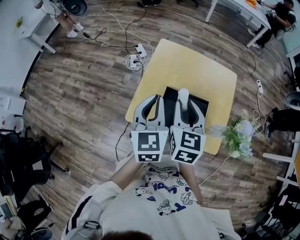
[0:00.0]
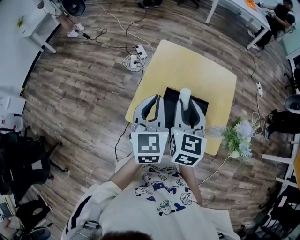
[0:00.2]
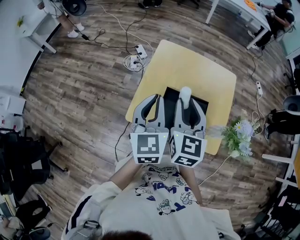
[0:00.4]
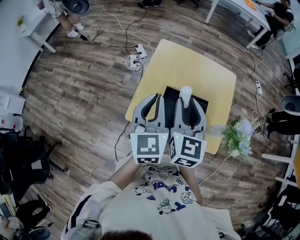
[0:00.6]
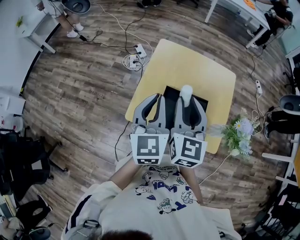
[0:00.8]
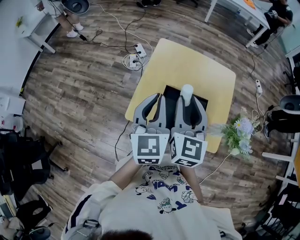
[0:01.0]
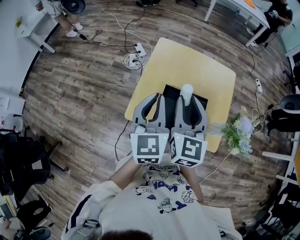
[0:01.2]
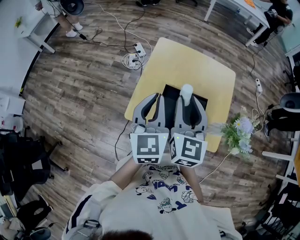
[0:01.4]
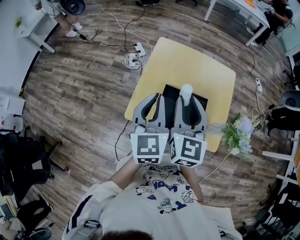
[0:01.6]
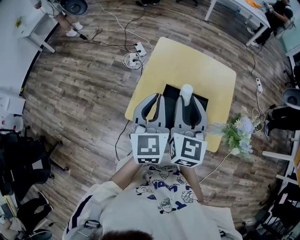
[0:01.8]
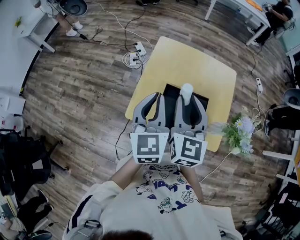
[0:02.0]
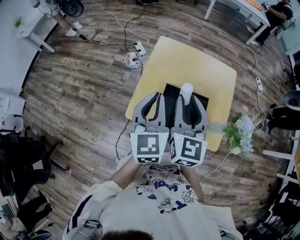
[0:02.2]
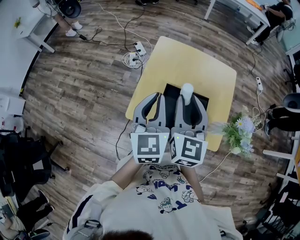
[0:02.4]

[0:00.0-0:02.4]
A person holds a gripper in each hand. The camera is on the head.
0:00.0 to 0:01.2: The grippers move only a little.
0:01.2 to 0:02.4: Both grippers stay about where they are.

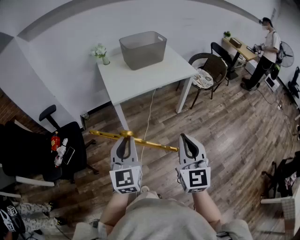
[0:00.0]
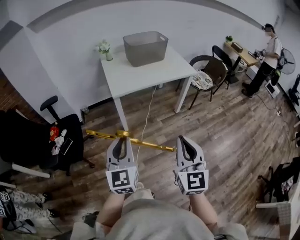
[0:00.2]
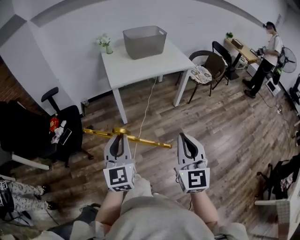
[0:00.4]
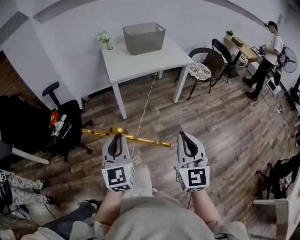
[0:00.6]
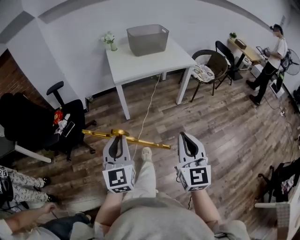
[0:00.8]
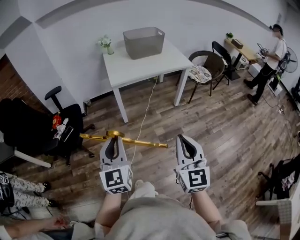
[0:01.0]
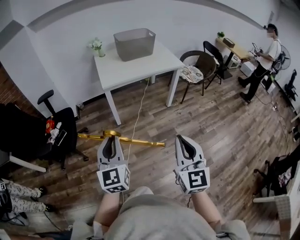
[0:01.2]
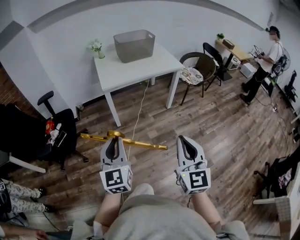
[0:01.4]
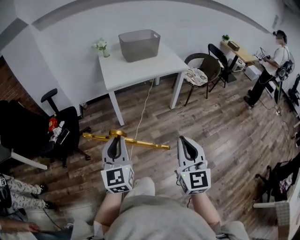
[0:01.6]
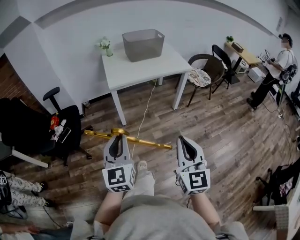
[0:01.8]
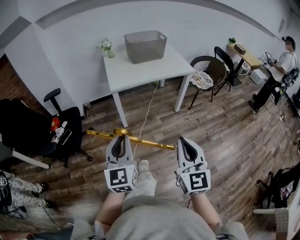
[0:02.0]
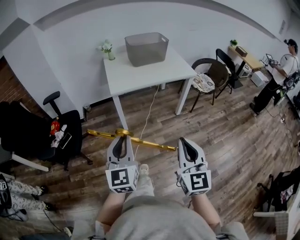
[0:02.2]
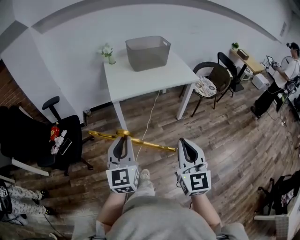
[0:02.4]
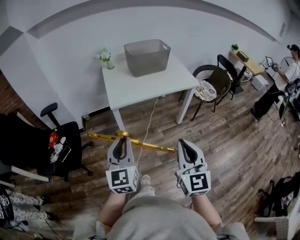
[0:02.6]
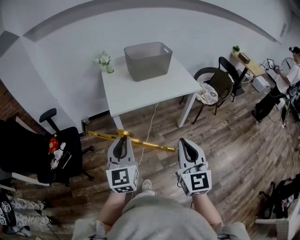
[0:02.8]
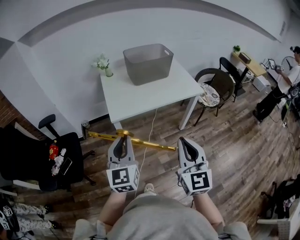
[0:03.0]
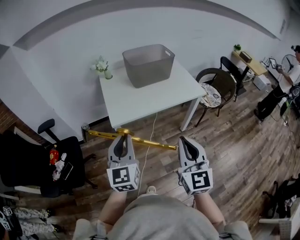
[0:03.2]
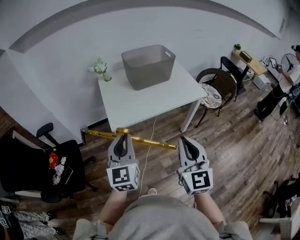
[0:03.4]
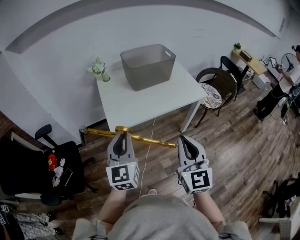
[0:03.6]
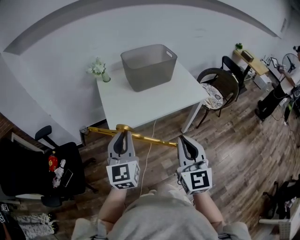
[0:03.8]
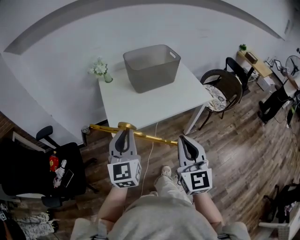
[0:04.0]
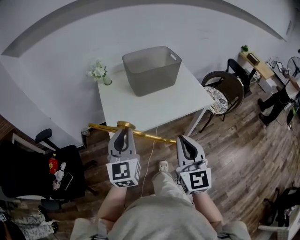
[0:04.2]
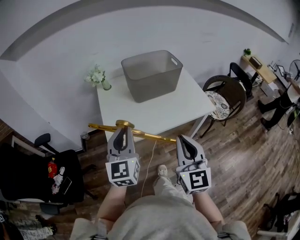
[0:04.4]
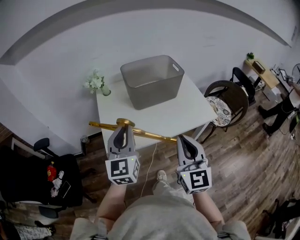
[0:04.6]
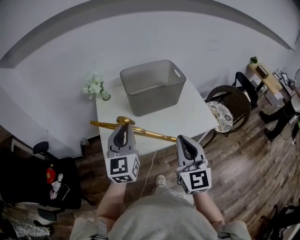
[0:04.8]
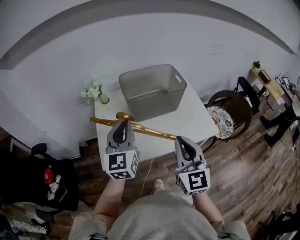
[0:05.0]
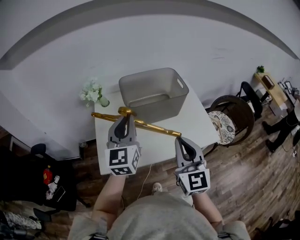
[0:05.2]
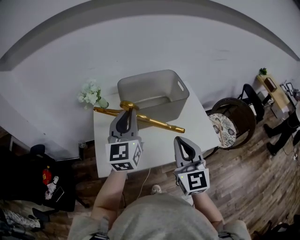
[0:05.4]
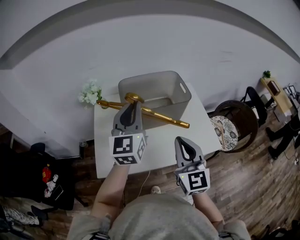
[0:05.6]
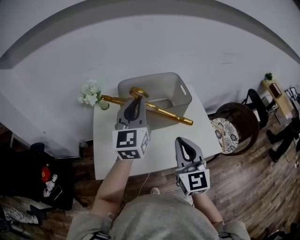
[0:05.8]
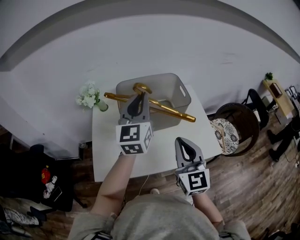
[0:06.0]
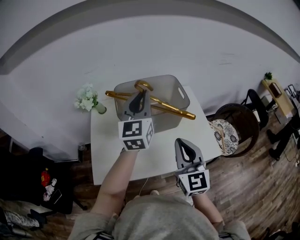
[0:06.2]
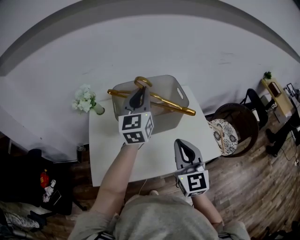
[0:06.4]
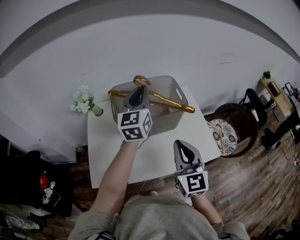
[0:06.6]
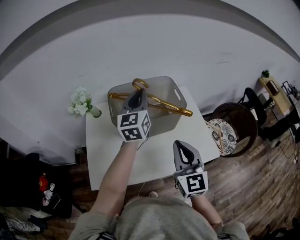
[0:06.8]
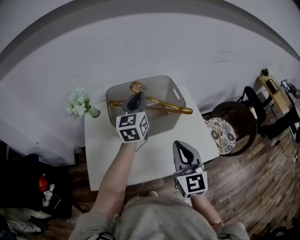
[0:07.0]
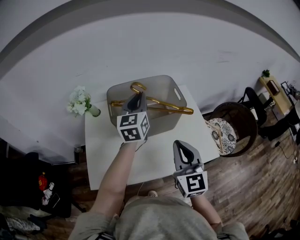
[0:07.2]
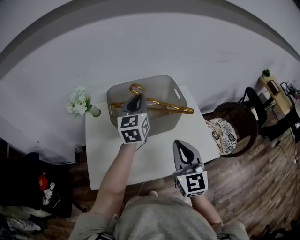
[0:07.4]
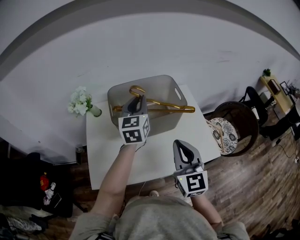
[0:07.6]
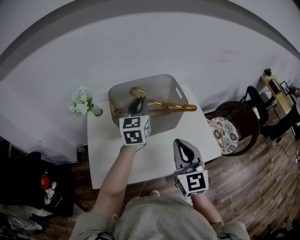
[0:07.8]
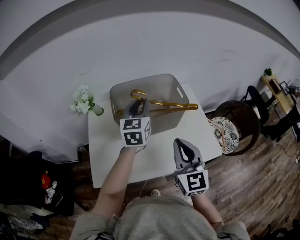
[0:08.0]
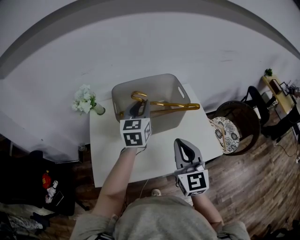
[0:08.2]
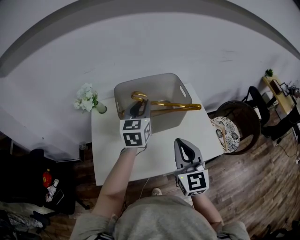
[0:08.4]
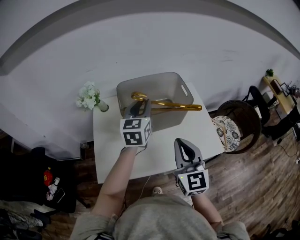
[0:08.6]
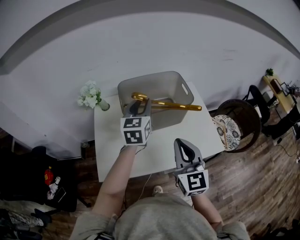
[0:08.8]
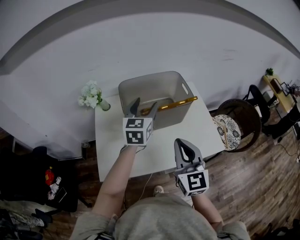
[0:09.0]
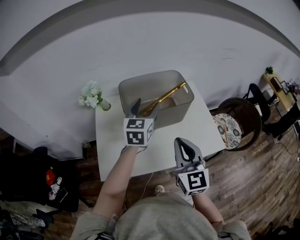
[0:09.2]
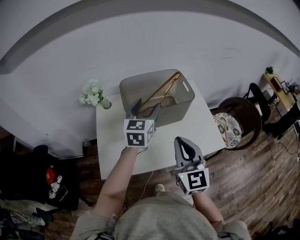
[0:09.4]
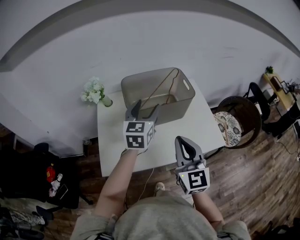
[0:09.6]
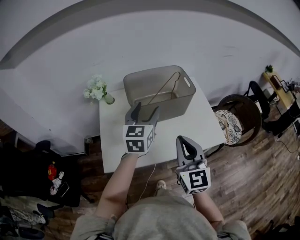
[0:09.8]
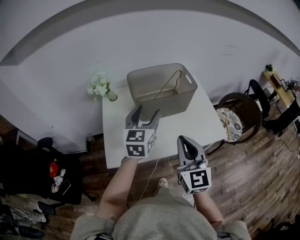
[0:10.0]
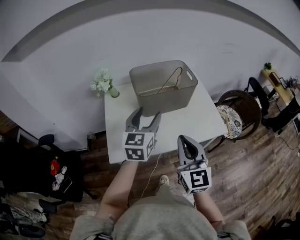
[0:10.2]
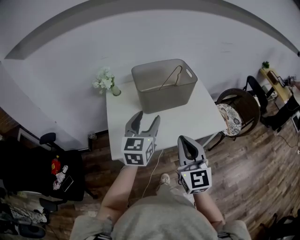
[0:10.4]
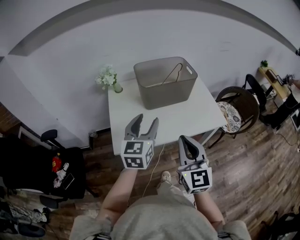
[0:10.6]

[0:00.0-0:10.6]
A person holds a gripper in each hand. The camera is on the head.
0:00.0 to 0:01.6: The left gripper moves backward, roughly 15 cm. The right gripper moves backward and to the right, about 20 cm.
0:01.6 to 0:03.0: Both grippers travel together forward, roughly 30 cm.
0:03.0 to 0:04.6: Both grippers move forward, approximately 30 cm.
0:04.6 to 0:06.0: The right gripper goes roughly 20 cm forward; the left gripper goes roughly 30 cm forward and to the right.
0:06.0 to 0:07.6: The left gripper heads forward and downward, covering some 10 cm.
0:07.6 to 0:09.0: The right gripper shifts by roughly 5 cm. Meanwhile the left gripper is displaced backward by roughly 5 cm, and opens up.
0:09.0 to 0:10.6: Both grippers move backward, roughly 20 cm.

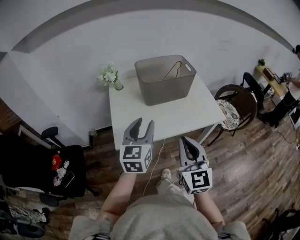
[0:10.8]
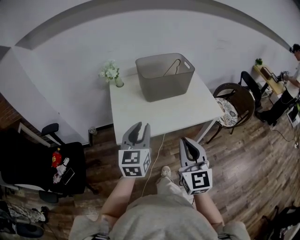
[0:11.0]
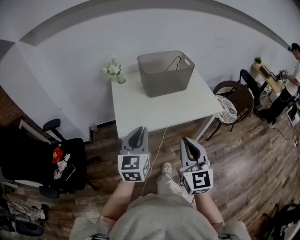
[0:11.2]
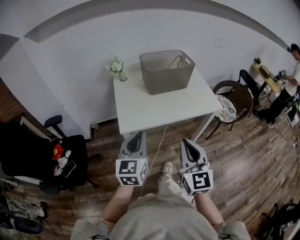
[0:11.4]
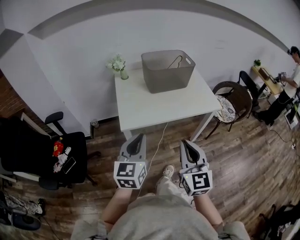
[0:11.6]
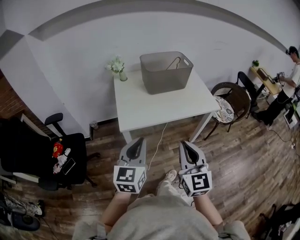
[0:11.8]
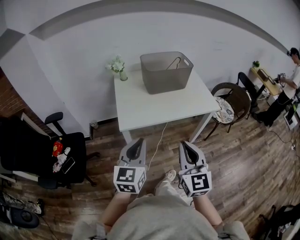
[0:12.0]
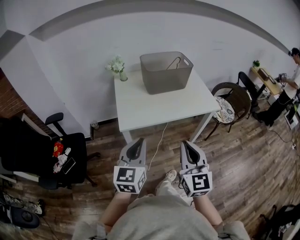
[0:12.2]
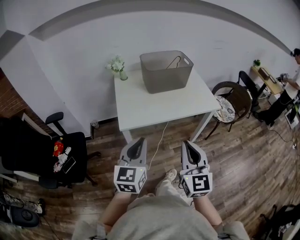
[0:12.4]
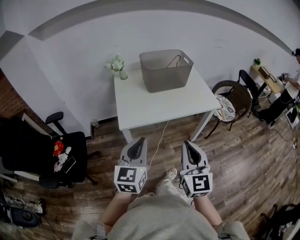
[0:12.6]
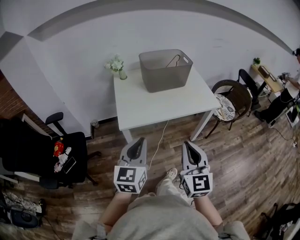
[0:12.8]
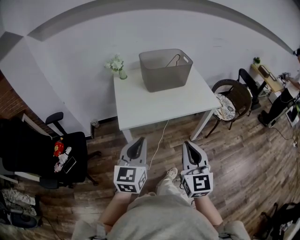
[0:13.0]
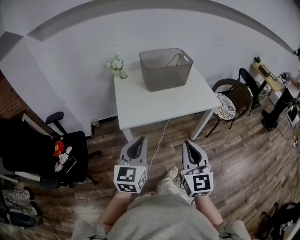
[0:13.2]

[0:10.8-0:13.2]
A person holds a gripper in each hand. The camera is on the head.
0:10.8 to 0:12.0: The two grippers go approximately 20 cm backward. The left gripper closes its fingers.
0:12.0 to 0:13.2: The grippers make only small movements.

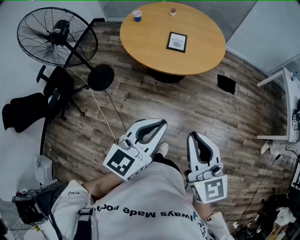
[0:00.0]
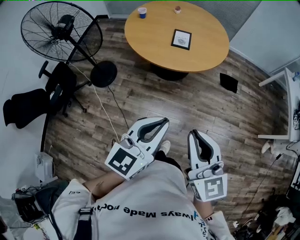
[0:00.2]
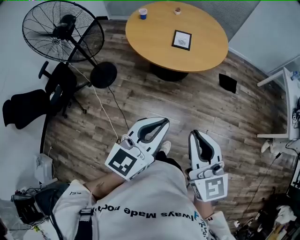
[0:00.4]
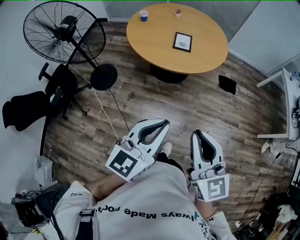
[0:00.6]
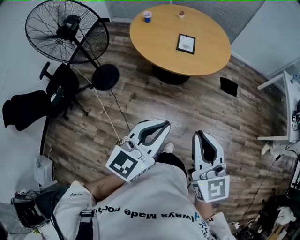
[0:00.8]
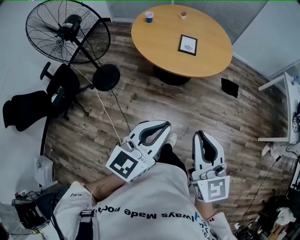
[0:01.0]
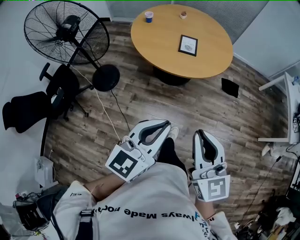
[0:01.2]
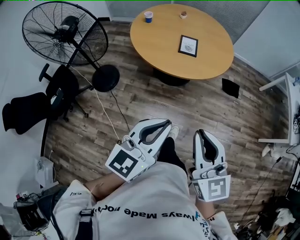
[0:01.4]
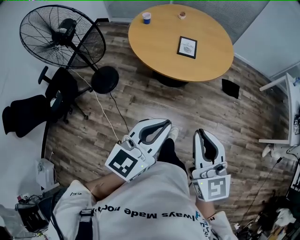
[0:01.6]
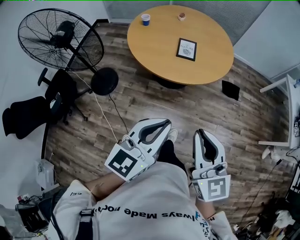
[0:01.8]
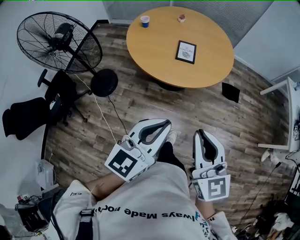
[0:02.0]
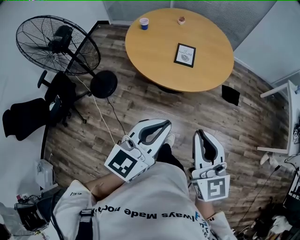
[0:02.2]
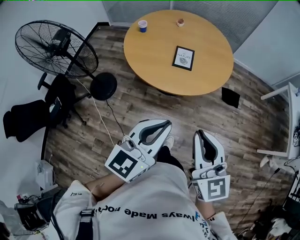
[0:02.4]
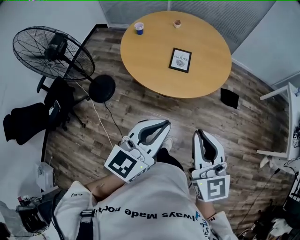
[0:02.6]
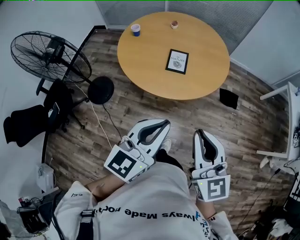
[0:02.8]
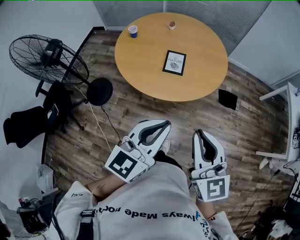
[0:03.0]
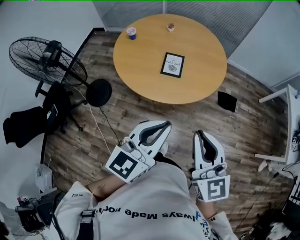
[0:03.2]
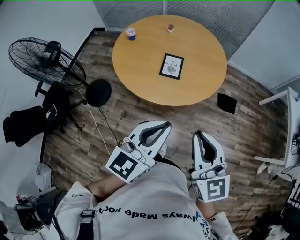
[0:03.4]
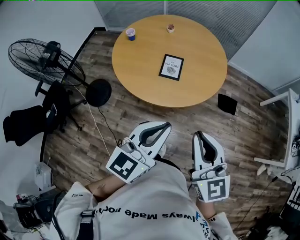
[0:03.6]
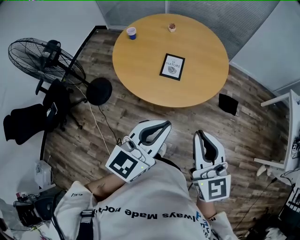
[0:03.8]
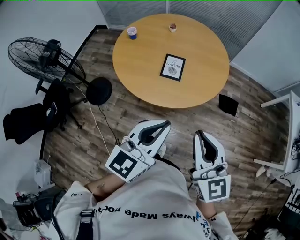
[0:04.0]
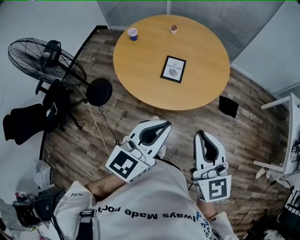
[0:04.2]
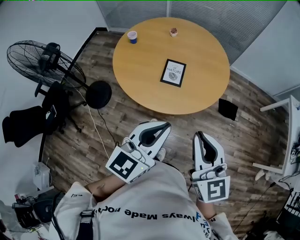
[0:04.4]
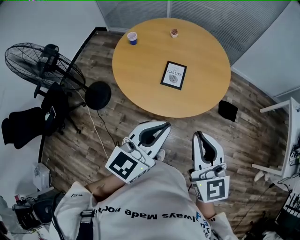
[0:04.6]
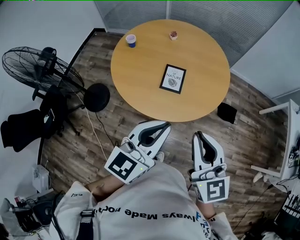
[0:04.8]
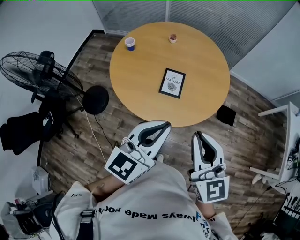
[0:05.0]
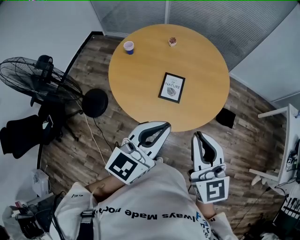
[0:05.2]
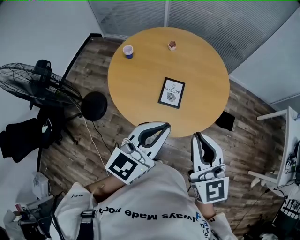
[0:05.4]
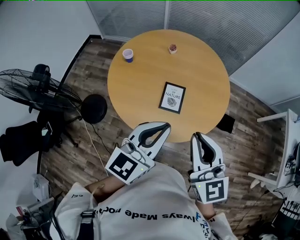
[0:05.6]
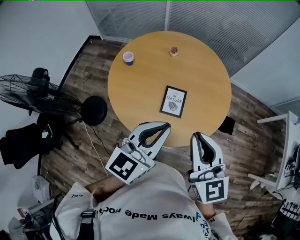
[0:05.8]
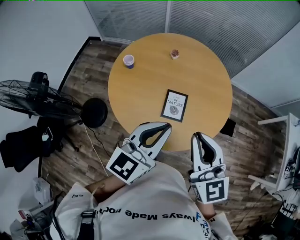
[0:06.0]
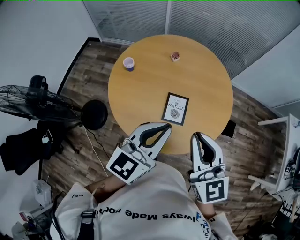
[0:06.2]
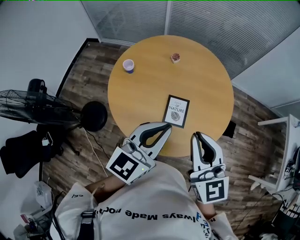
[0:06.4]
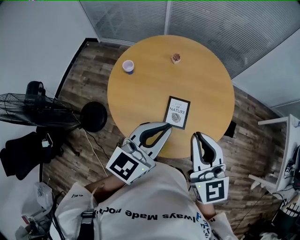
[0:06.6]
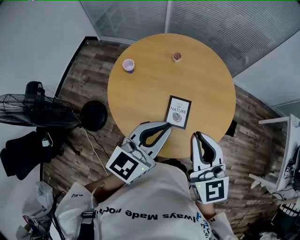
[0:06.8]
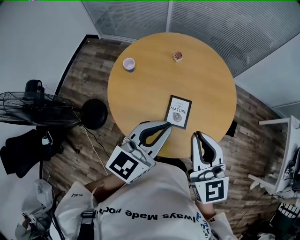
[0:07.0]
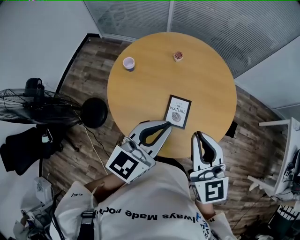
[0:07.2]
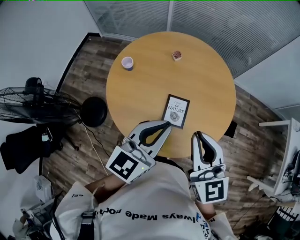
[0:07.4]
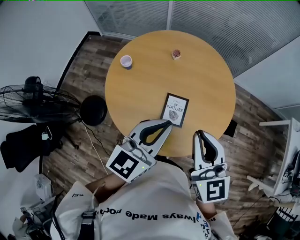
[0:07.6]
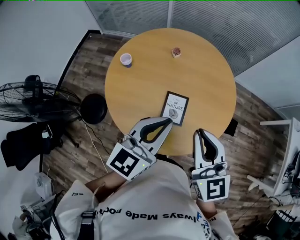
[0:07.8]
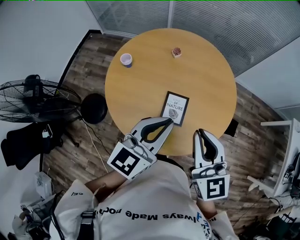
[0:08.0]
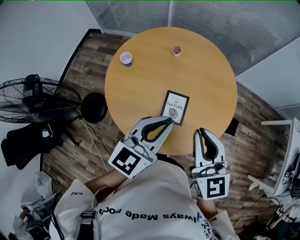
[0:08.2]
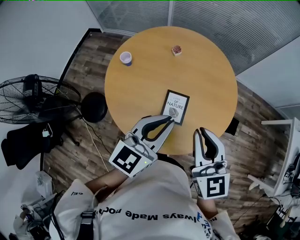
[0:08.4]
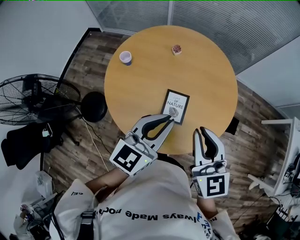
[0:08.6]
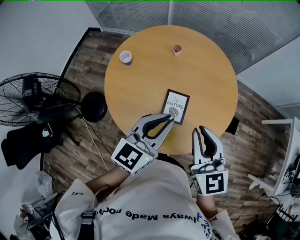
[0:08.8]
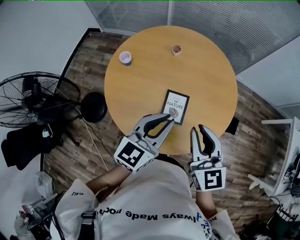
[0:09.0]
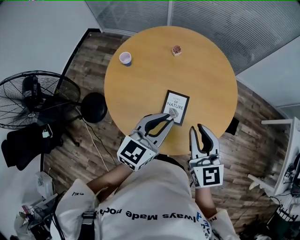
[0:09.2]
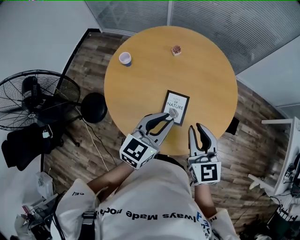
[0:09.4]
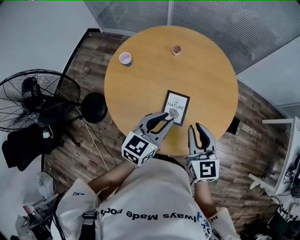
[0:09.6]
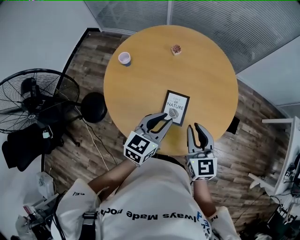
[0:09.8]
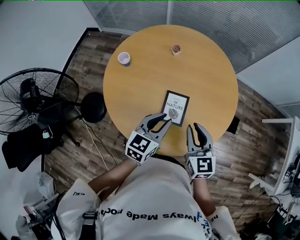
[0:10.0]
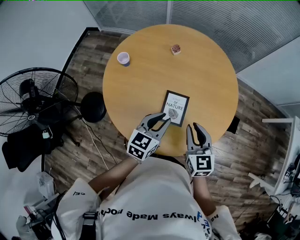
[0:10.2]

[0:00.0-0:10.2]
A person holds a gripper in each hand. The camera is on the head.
0:00.0 to 0:01.4: Both grippers travel together to the left, about 10 cm.
0:01.4 to 0:03.0: Both grippers move forward and to the right, about 25 cm.
0:03.0 to 0:04.4: The two grippers go approximately 10 cm forward.
0:04.4 to 0:05.8: The grippers both shift forward by some 20 cm.
0:05.8 to 0:07.2: Both grippers move forward, about 10 cm.
0:07.2 to 0:08.8: The right gripper shifts by approximately 5 cm. Meanwhile the left gripper shifts by about 5 cm.
0:08.8 to 0:10.2: Both grippers travel together downward, some 15 cm.
